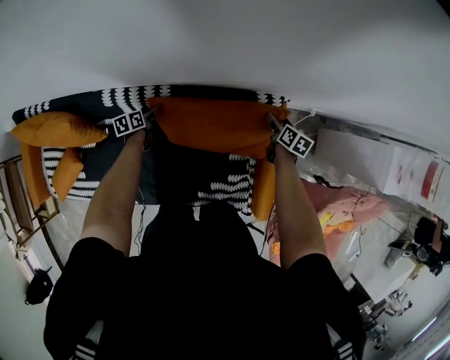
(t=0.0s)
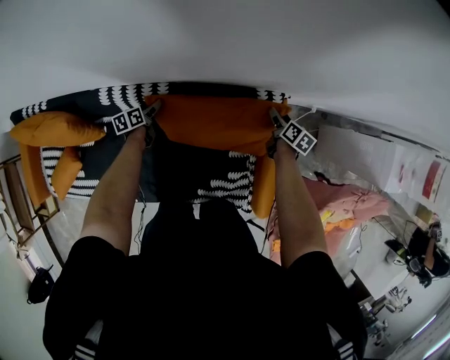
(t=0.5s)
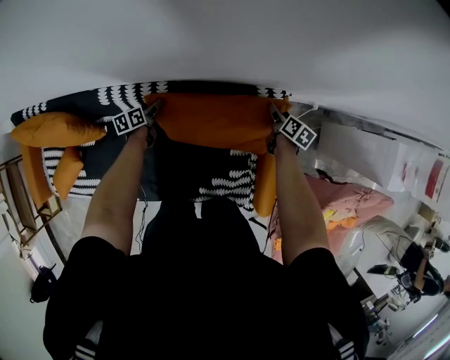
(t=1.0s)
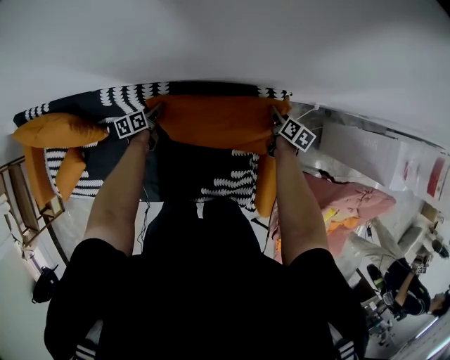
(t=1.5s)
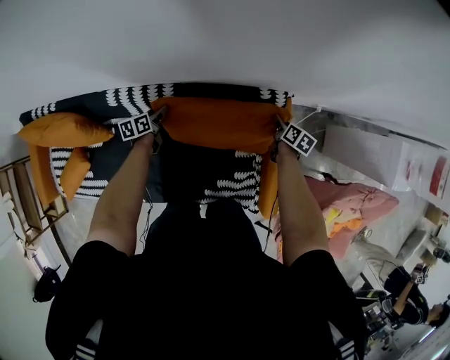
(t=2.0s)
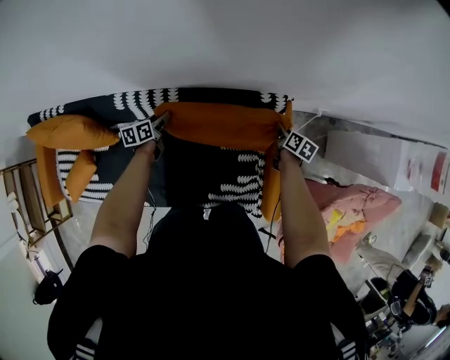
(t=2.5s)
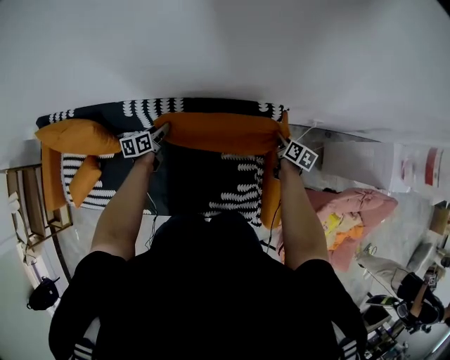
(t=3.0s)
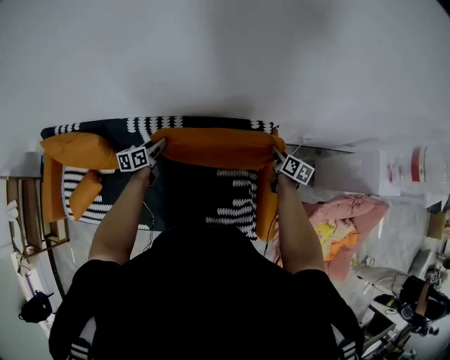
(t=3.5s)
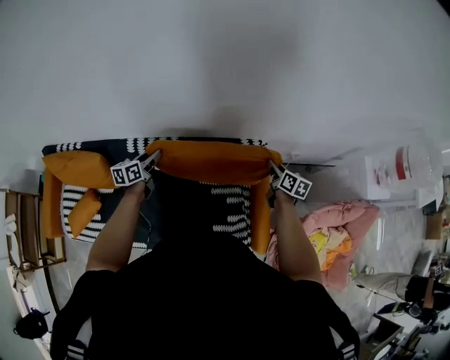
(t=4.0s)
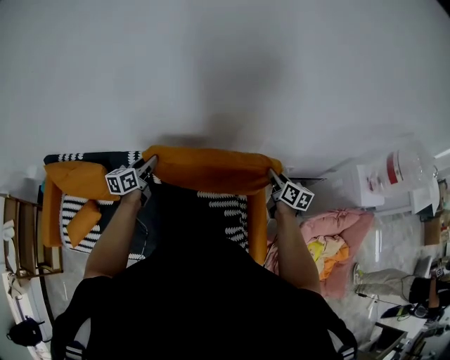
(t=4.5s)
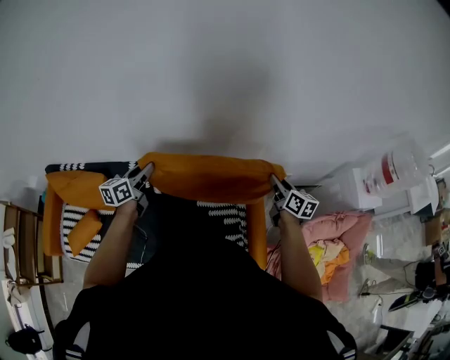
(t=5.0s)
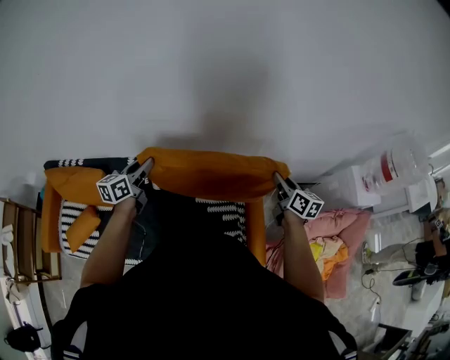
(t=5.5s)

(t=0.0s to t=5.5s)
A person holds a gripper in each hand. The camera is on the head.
t=0.0s - t=2.0s: The right gripper closes its fingers, while the left gripper shifts by about 5 cm, and closes.
t=2.0s - t=3.5s: The left gripper shifts roughly 20 cm upward. Meanwhile the right gripper heads upward and backward, covering approximately 15 cm.
t=3.5s - t=5.5s: The grippers both shift upward by some 25 cm. The right gripper turns by some 20 degrees. Meanwhile the left gripper changes its angle by some 20 degrees.

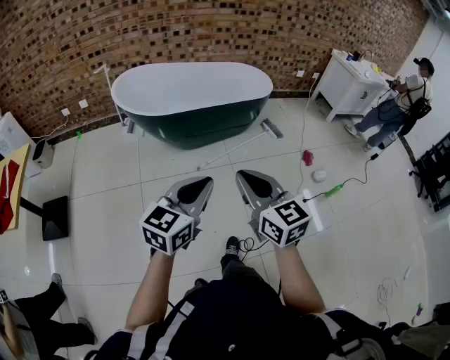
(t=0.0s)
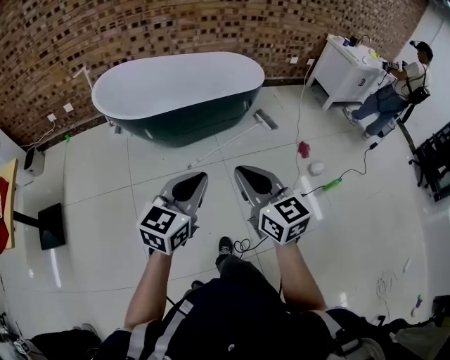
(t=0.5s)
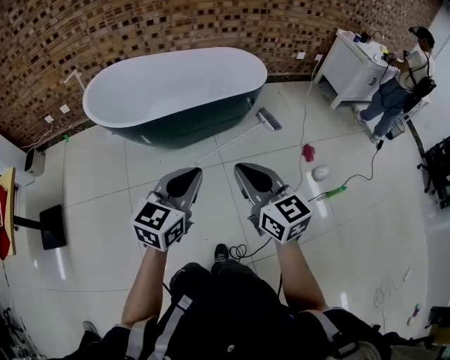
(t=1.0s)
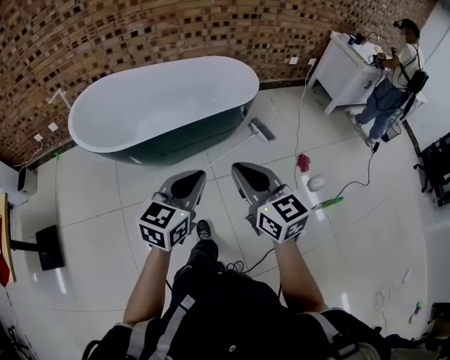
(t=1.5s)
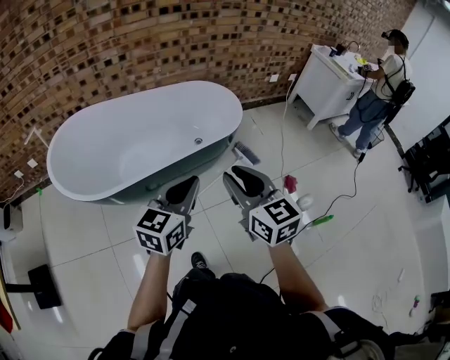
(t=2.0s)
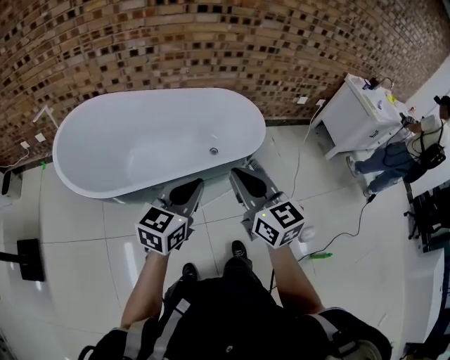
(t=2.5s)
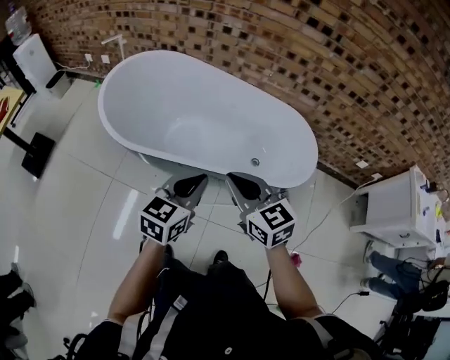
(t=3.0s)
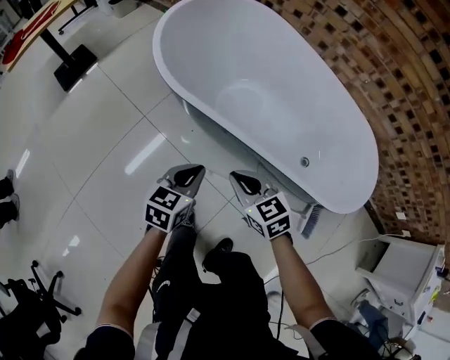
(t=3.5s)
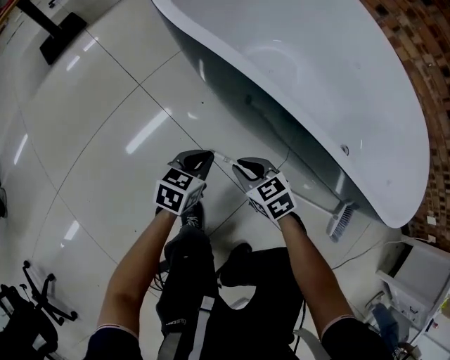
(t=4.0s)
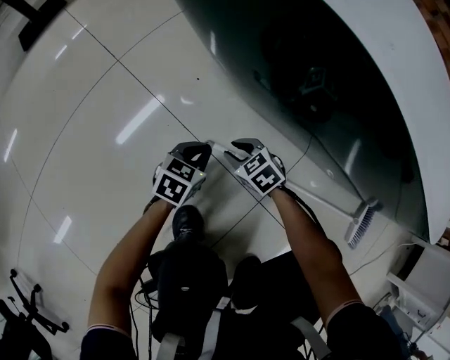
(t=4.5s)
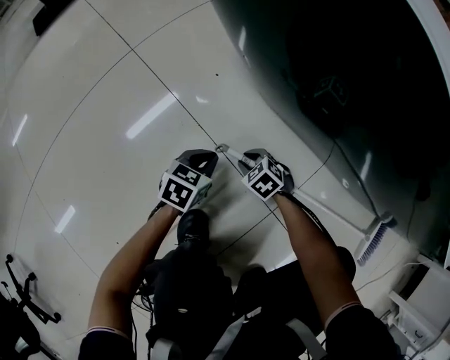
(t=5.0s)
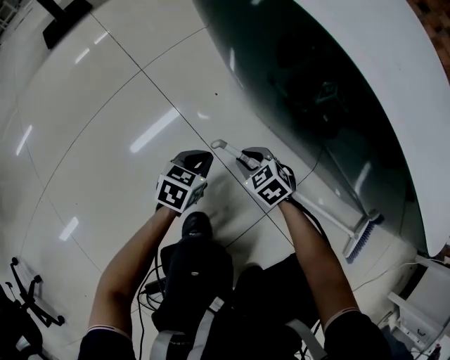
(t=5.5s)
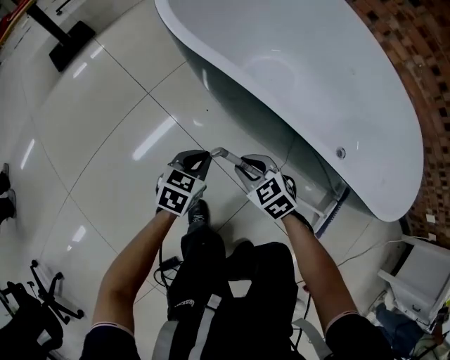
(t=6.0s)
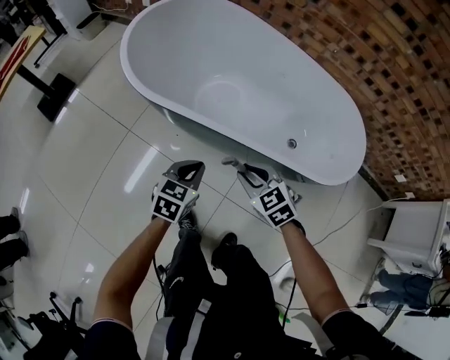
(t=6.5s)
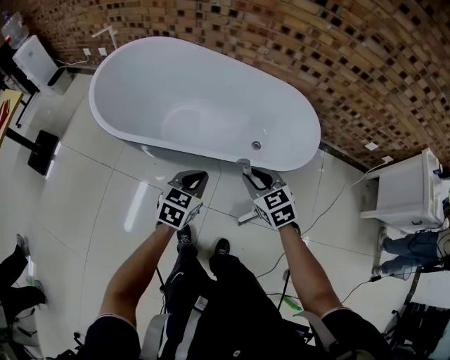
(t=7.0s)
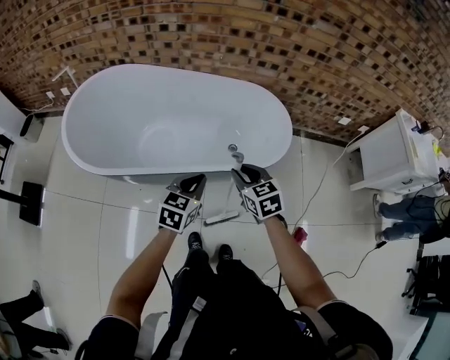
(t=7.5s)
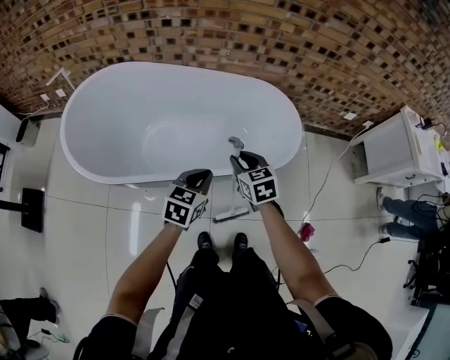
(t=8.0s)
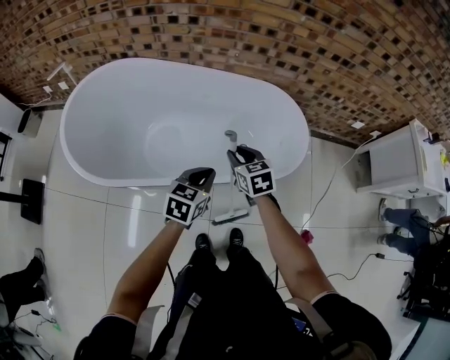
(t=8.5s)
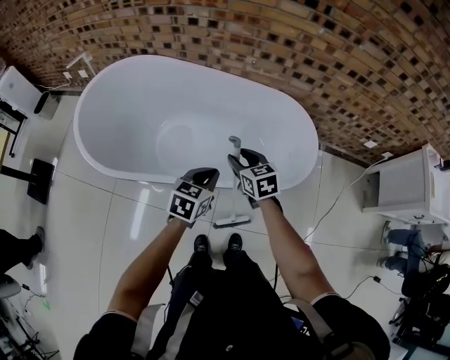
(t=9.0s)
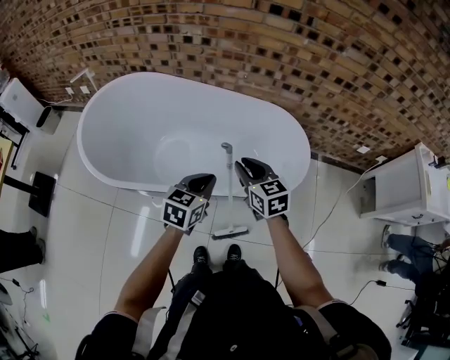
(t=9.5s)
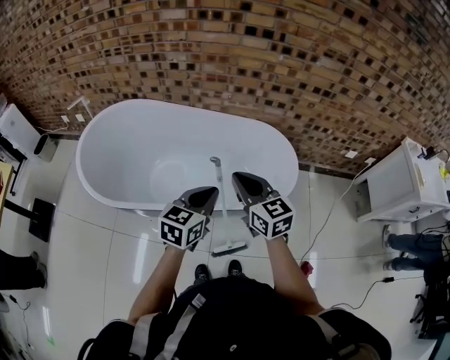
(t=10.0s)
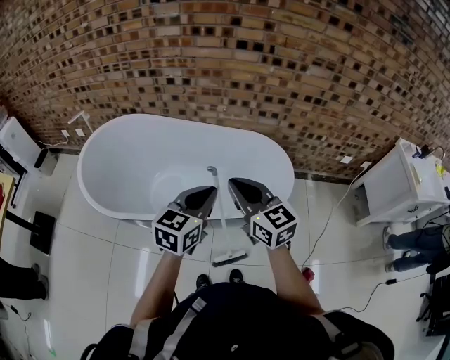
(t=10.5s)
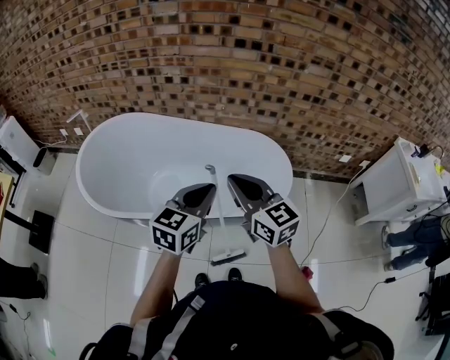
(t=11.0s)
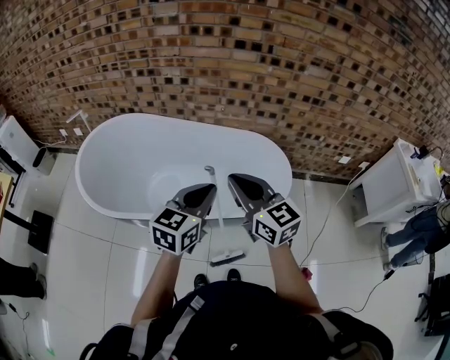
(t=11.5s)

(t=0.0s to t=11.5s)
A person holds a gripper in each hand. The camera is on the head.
t=0.0s - t=2.0s: Both grippers are carried forward, approximately 50 cm. The right gripper opens its fingers.
t=2.0s - t=4.0s: The two grippers go about 60 cm downward. The right gripper tilts its fingers approximately 30 degrees downward. Meanwhile the left gripper swivels roughly 60 degrees.
t=4.0s - t=6.0s: The left gripper moves about 25 cm downward and comes back. The right gripper moves approximately 35 cm downward and comes back.
t=6.0s - t=7.5s: The grippers both shift upward by about 35 cm. The left gripper changes its angle by about 40 degrees, while the right gripper rotates roughly 60 degrees.
t=7.5s - t=9.5s: The two grippers go some 10 cm forward.
t=9.5s - t=11.5s: The right gripper is displaced upward and backward by about 20 cm, and turns by roughly 20 degrees. The left gripper shifts roughly 15 cm upward.

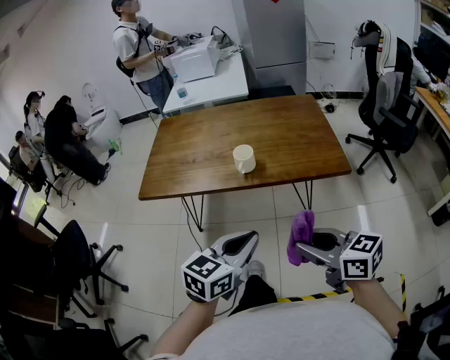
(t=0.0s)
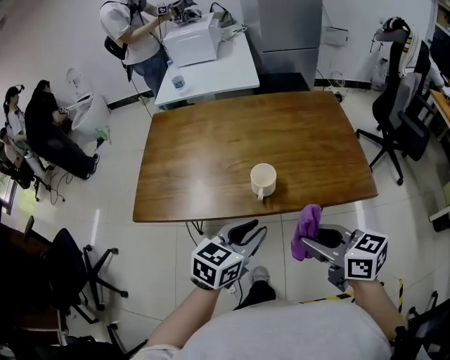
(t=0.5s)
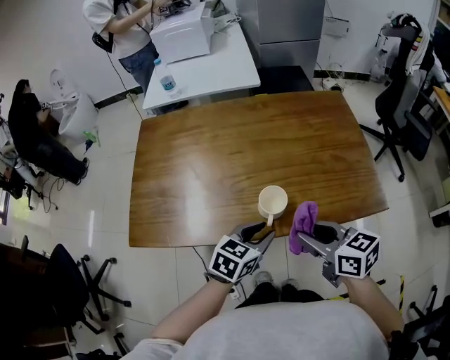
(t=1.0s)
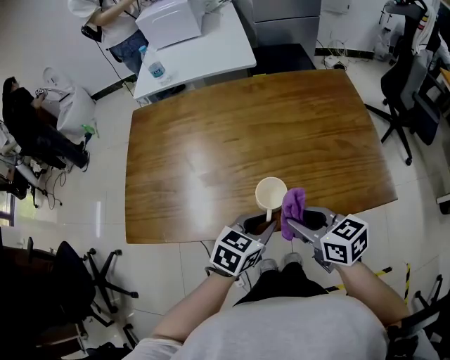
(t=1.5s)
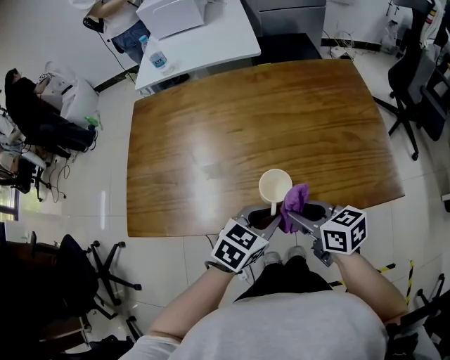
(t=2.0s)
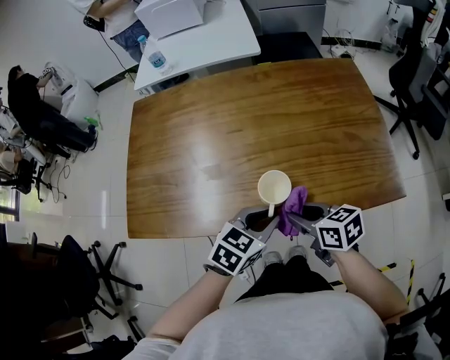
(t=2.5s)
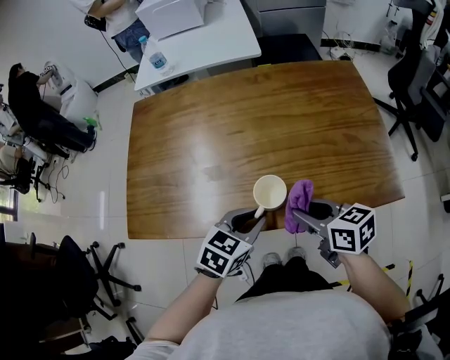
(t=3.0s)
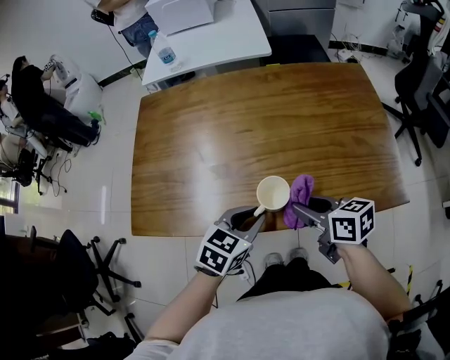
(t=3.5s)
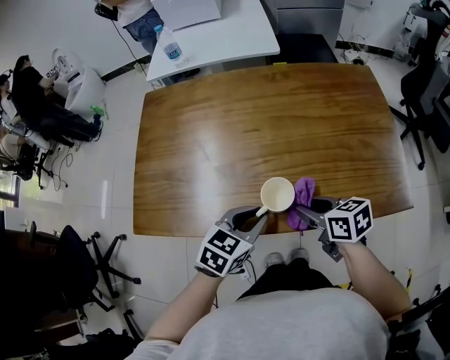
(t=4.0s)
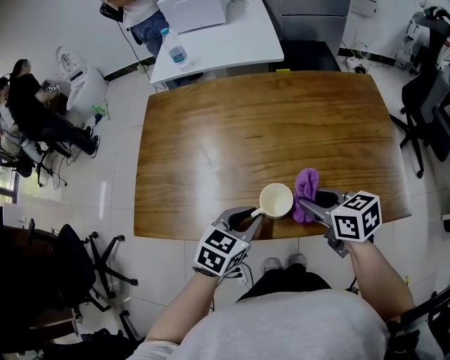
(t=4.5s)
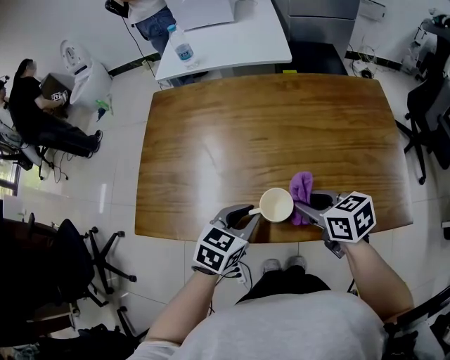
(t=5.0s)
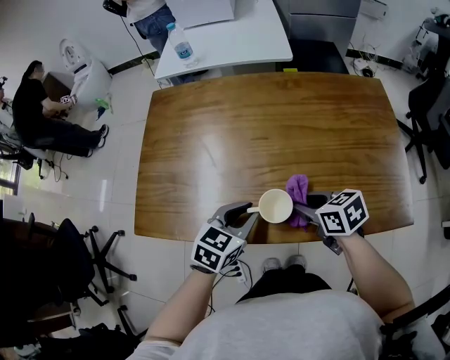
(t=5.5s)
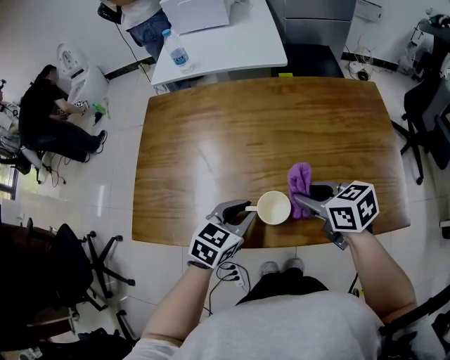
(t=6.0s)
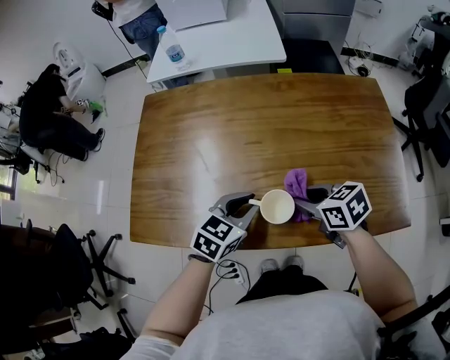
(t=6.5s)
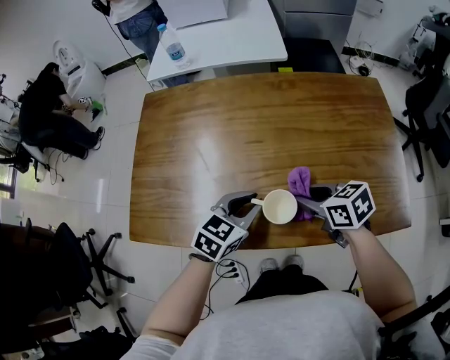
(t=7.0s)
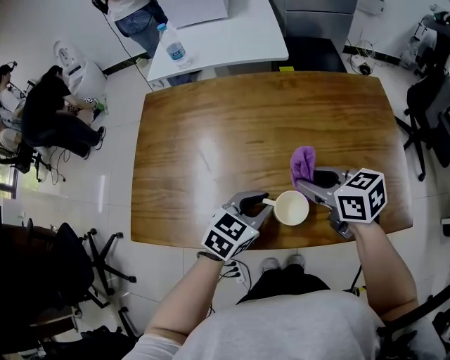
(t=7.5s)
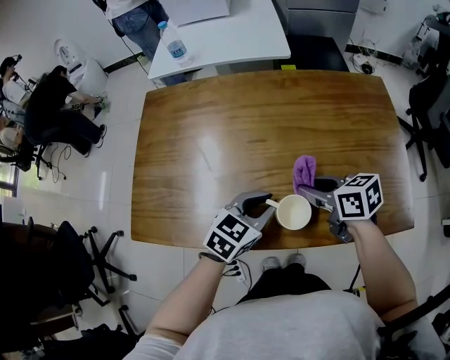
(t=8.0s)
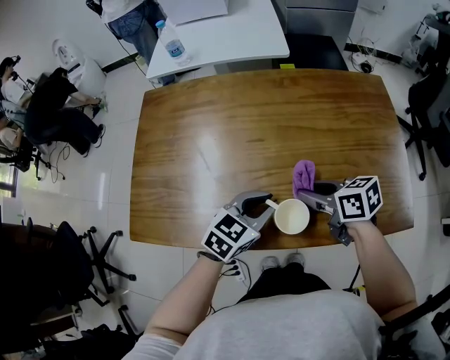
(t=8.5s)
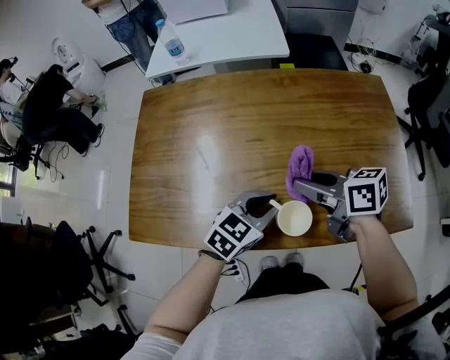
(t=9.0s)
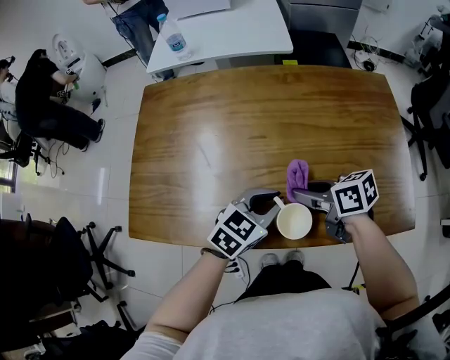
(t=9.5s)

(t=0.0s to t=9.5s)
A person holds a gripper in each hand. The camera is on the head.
t=0.0s - t=2.0s: Both grippers move forward and downward, some 40 cm. The left gripper swivels roughly 30 degrees.
t=2.0s - t=4.0s: The left gripper goes approximately 5 cm to the left.
t=4.0s - t=5.5s: The left gripper ends up approximately 5 cm from where it was.
t=5.5s - t=7.5s: The left gripper shifts about 5 cm to the right. The right gripper moves up and down over approximately 10 cm, changing direction 2 times.
t=7.5s - t=9.5s: The right gripper goes up and down, some 5 cm each way, reversing 2 times, and turns by about 20 degrees.
